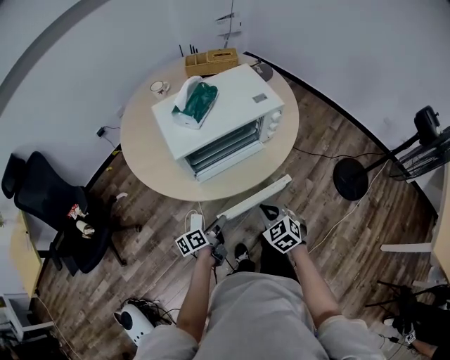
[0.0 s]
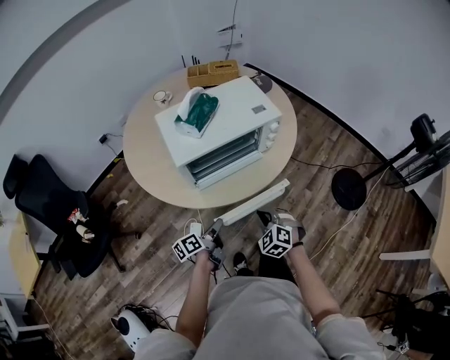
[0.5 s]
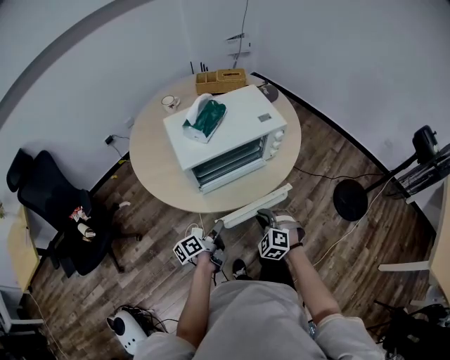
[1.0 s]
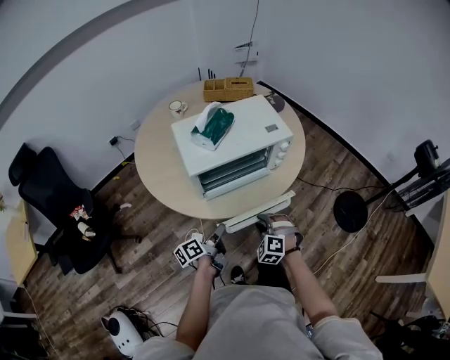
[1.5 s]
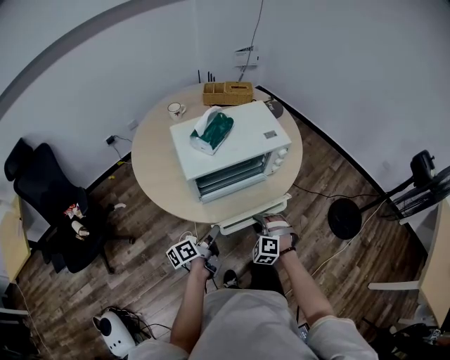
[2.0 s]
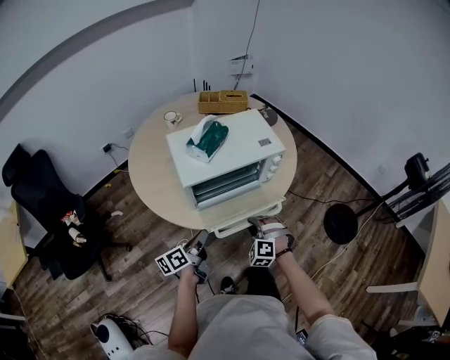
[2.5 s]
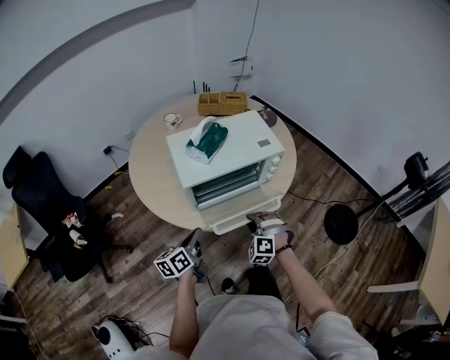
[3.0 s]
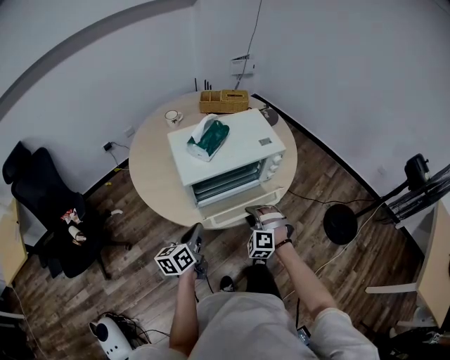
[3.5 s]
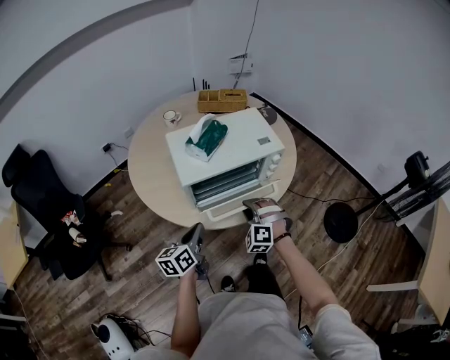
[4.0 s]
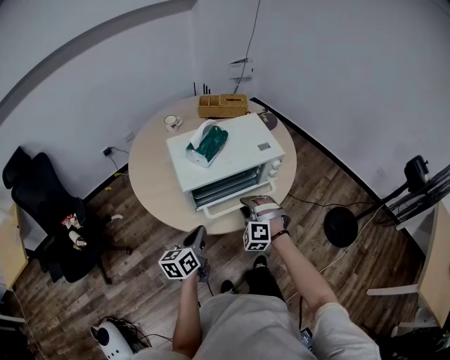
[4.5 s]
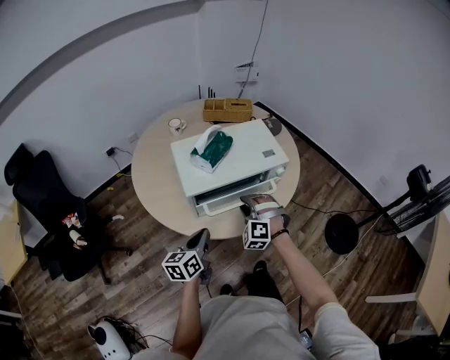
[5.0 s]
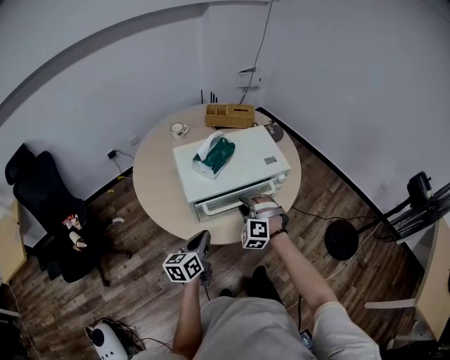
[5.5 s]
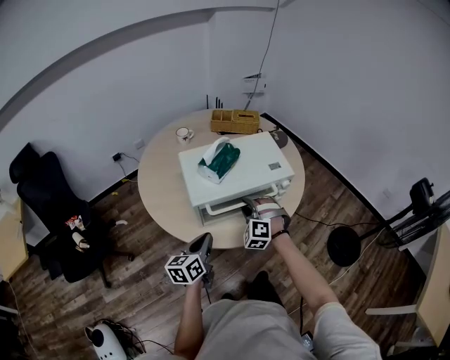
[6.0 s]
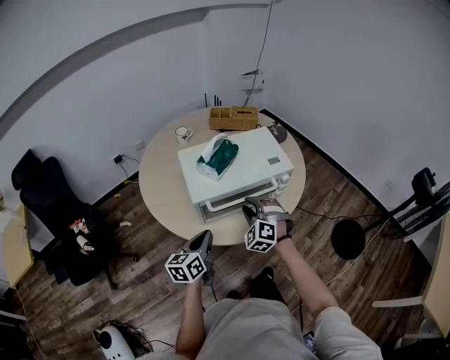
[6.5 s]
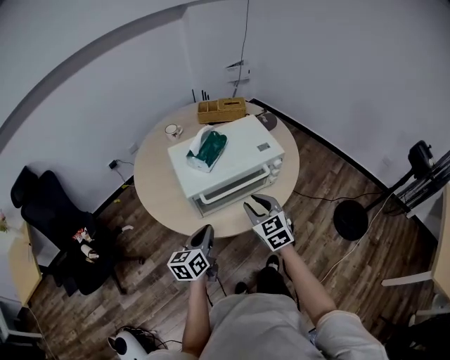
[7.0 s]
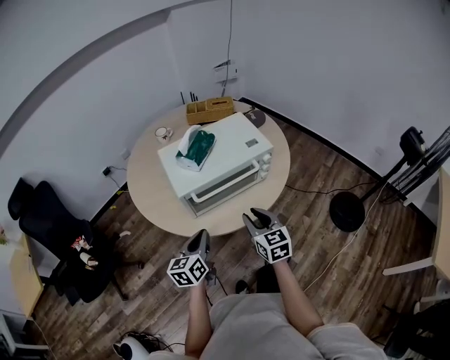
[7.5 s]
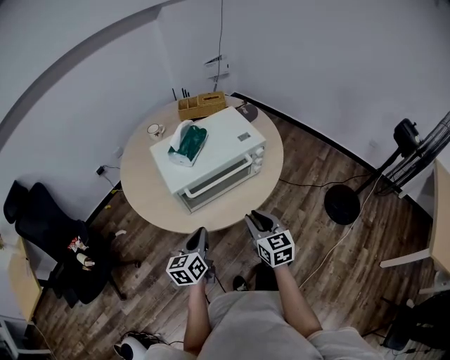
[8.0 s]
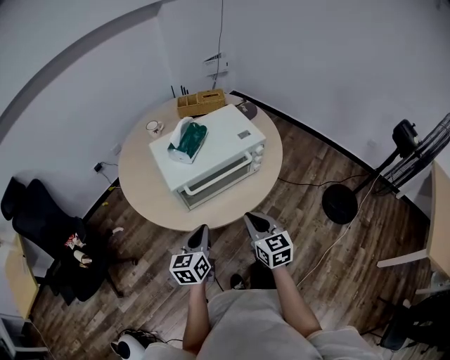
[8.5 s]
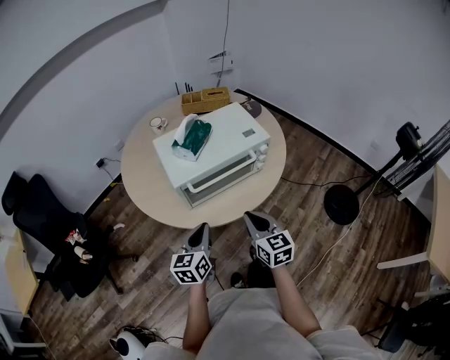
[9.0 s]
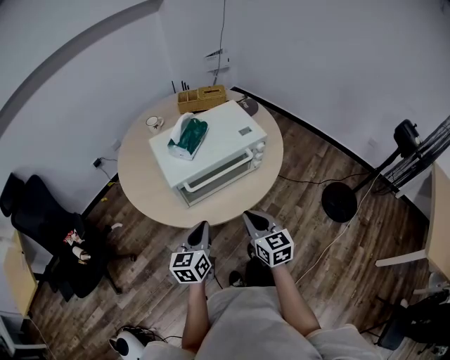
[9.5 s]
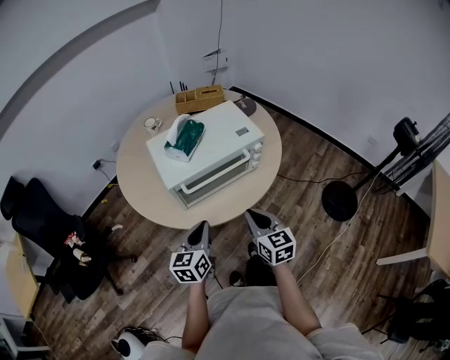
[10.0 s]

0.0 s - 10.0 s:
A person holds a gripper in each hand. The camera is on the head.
0.0 s - 2.0 s: The left gripper travels upward by approximately 10 cm; the right gripper ends up roughly 5 cm from where it was, rolls counterclockwise, seen from behind, by some 40 degrees, and opens its fingers.
2.0 s - 4.0 s: The left gripper goes roughly 5 cm upward, rotates approximately 30 degrees, and closes; the right gripper is displaced upward and forward by approximately 10 cm.
4.0 s - 6.0 s: The right gripper heads forward, covering roughly 10 cm.
6.0 s - 8.0 s: The right gripper heads backward and to the right, covering approximately 15 cm, and rotates around the line of its fingers by some 80 degrees, clockwise from behind. The left gripper shifts by some 5 cm.
8.0 s - 10.0 s: There are only small adjustments of the grippers.

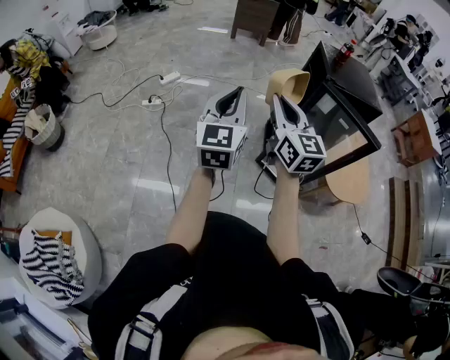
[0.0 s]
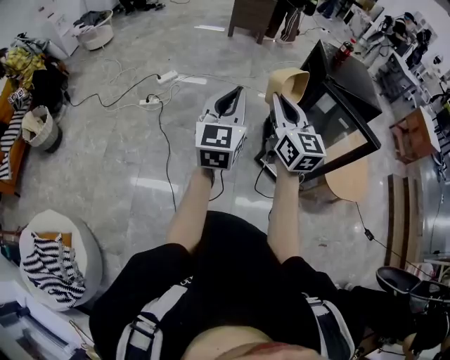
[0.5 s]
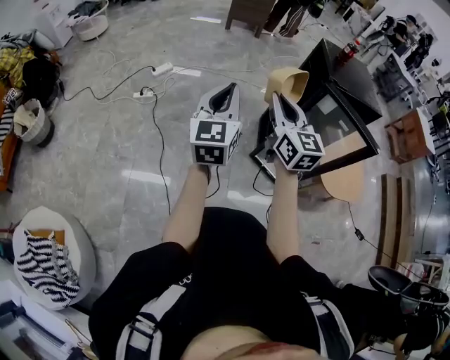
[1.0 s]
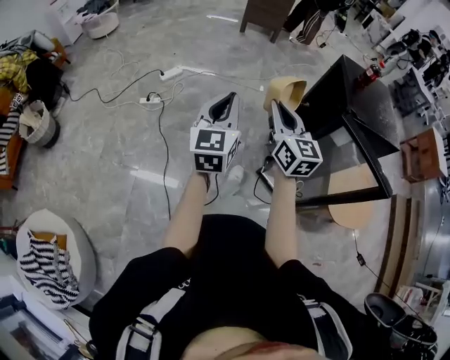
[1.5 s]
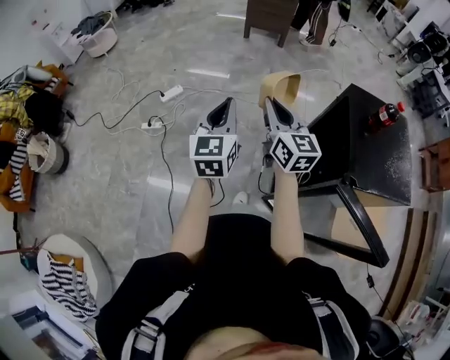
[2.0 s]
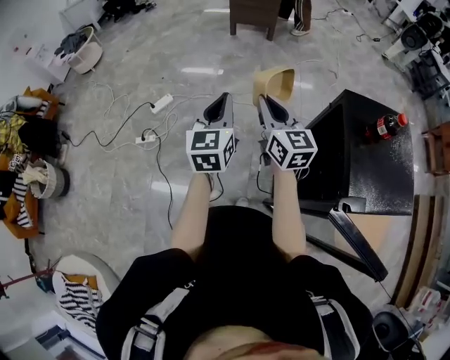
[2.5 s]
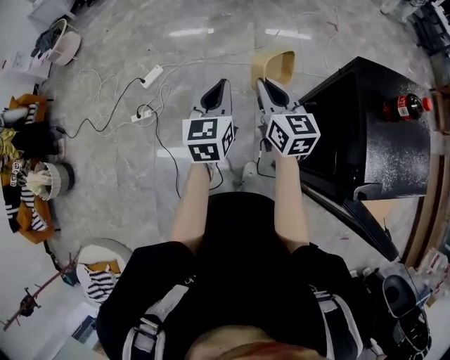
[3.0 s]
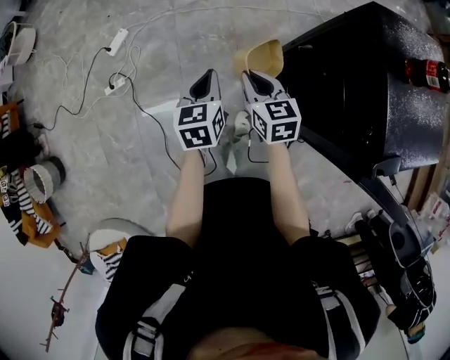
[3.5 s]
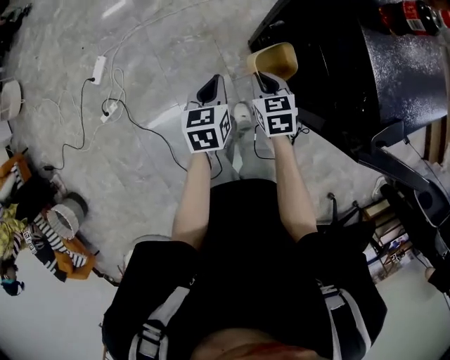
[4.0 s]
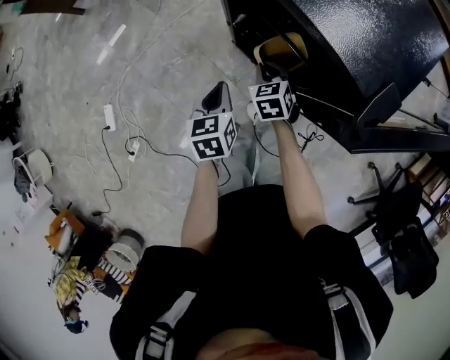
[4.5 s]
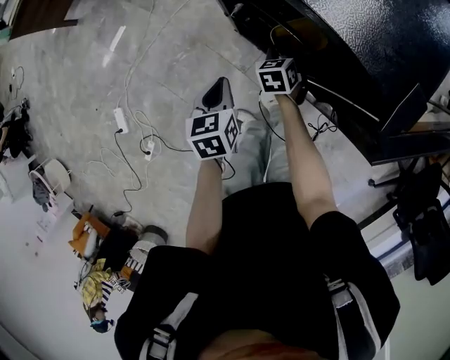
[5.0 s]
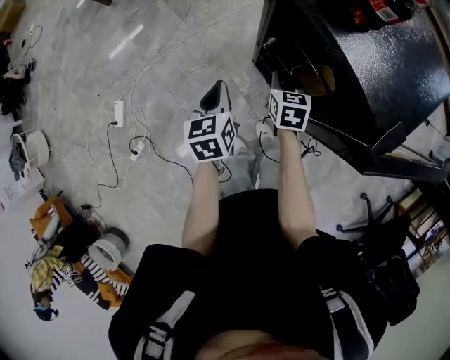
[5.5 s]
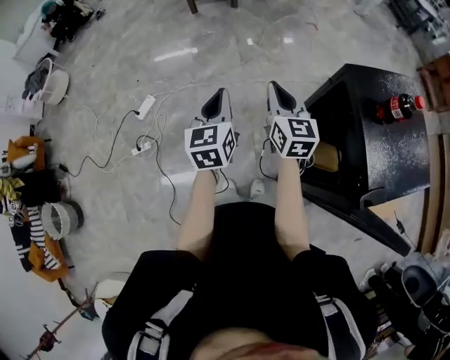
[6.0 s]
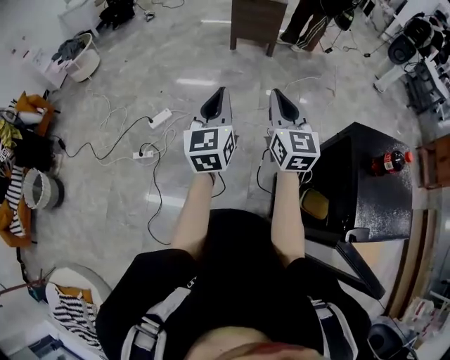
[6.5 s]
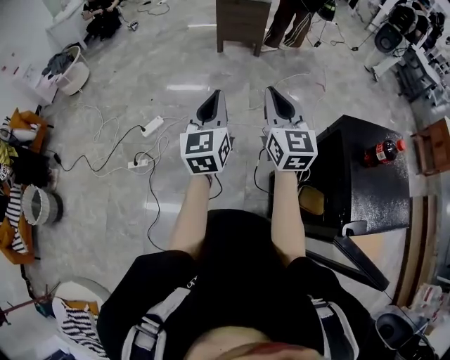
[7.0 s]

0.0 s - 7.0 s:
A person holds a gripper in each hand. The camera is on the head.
0.0 s - 2.0 s: The pair of grippers is taken forward, approximately 50 cm.
2.0 s - 3.5 s: The left gripper moves downward and forward, about 25 cm, and rotates approximately 30 degrees. The right gripper goes approximately 25 cm downward, and tilts its fingers approximately 30 degrees downward.
3.5 s - 5.0 s: The left gripper changes place by about 20 cm, and rotates about 40 degrees, while the right gripper moves roughly 30 cm, and turns by about 50 degrees.
5.0 s - 7.0 s: Both grippers travel together upward, approximately 40 cm. The left gripper points its fingers roughly 50 degrees further upward; the right gripper tips its fingers upward by about 60 degrees.

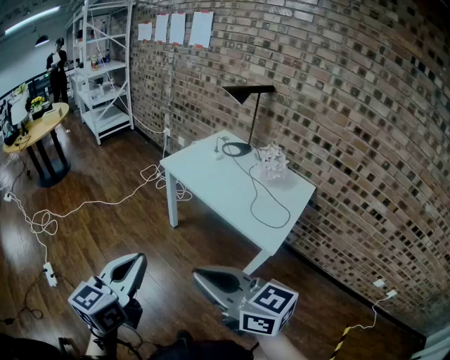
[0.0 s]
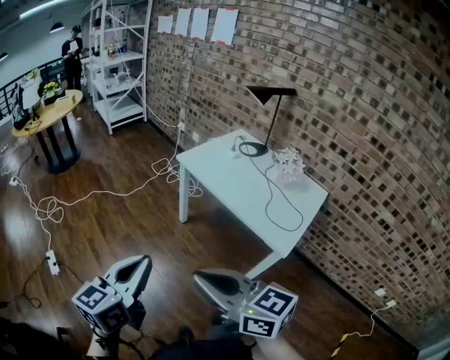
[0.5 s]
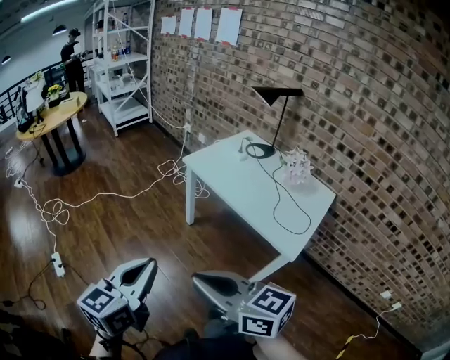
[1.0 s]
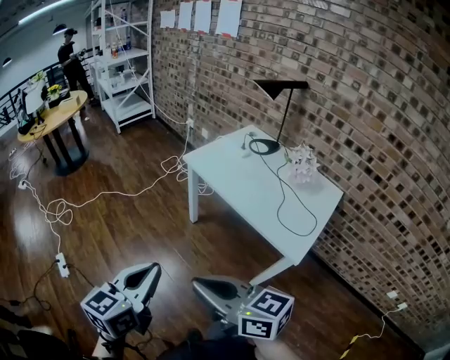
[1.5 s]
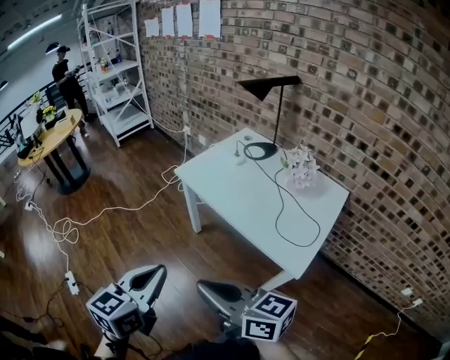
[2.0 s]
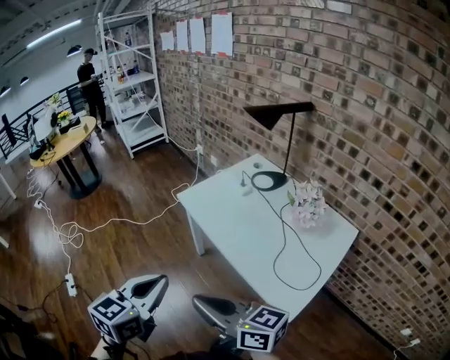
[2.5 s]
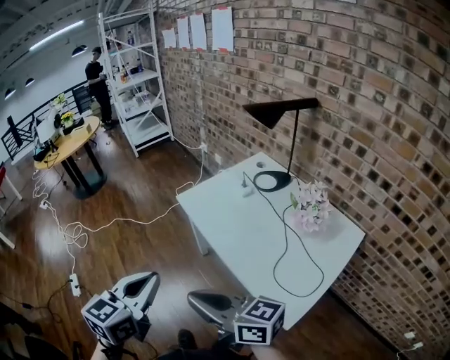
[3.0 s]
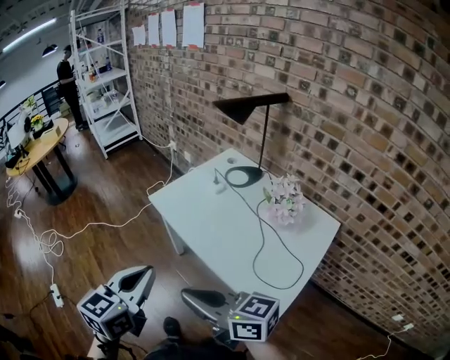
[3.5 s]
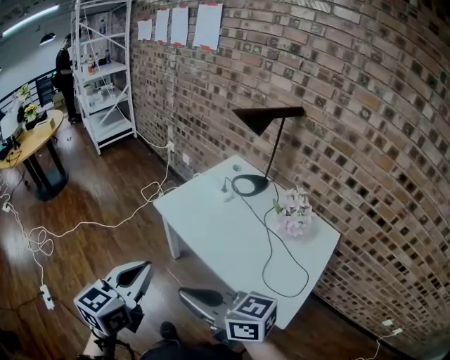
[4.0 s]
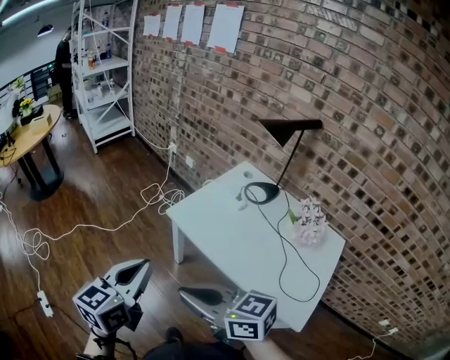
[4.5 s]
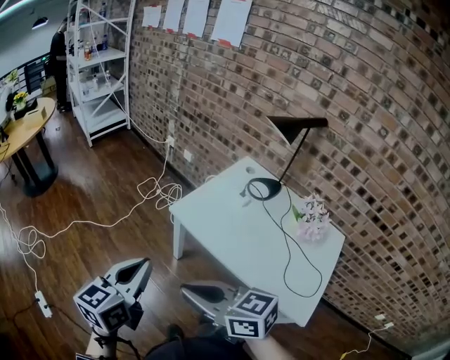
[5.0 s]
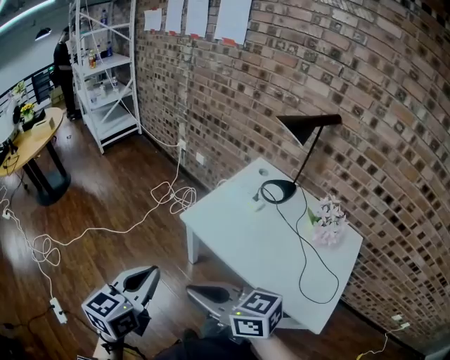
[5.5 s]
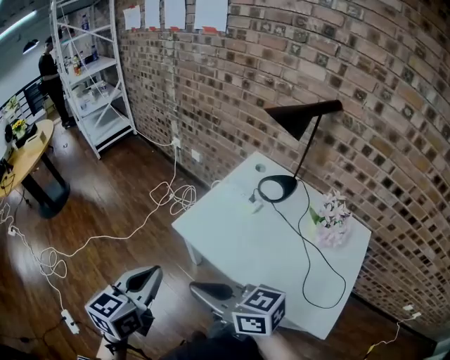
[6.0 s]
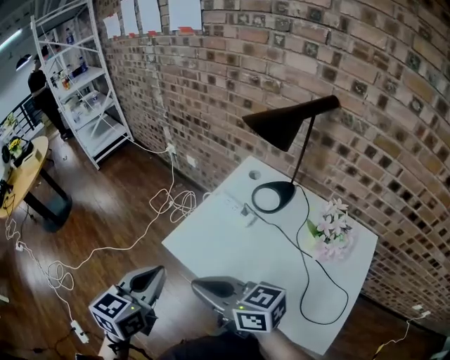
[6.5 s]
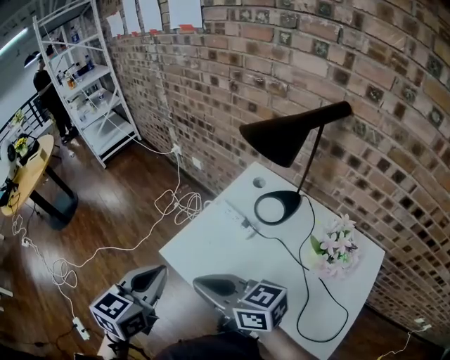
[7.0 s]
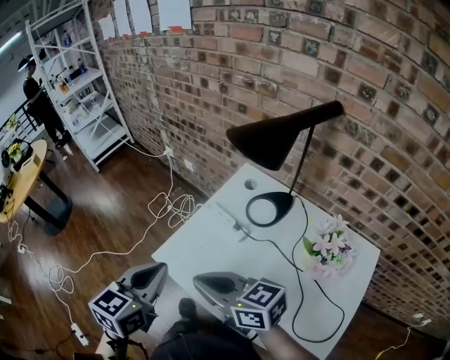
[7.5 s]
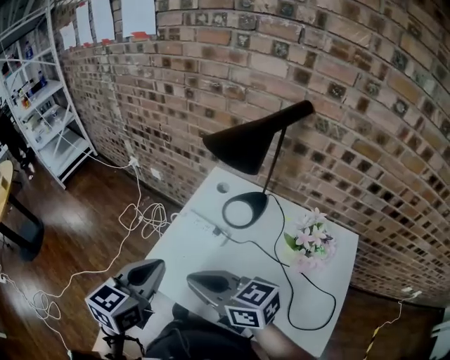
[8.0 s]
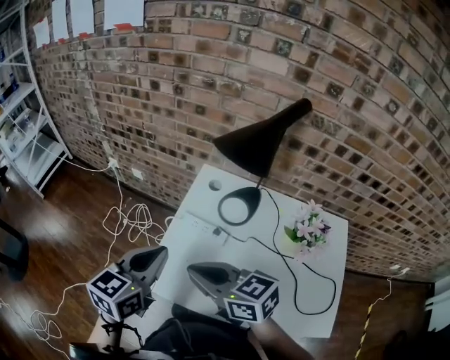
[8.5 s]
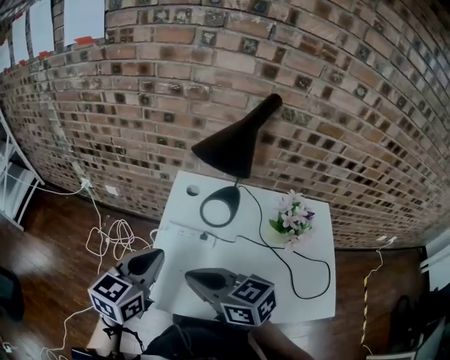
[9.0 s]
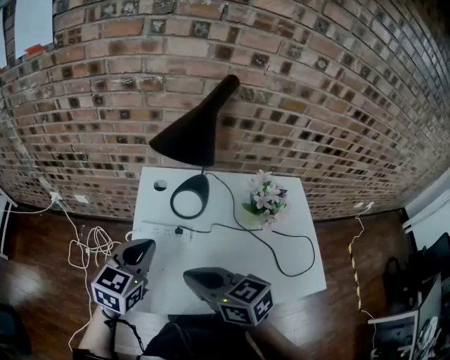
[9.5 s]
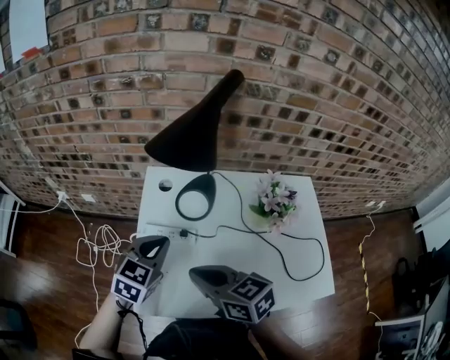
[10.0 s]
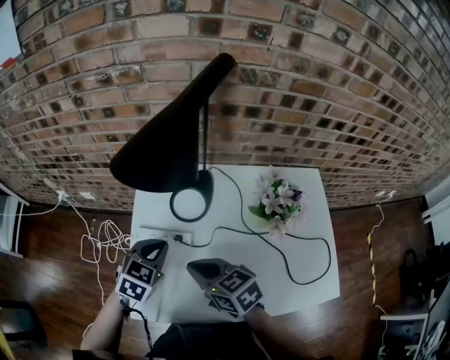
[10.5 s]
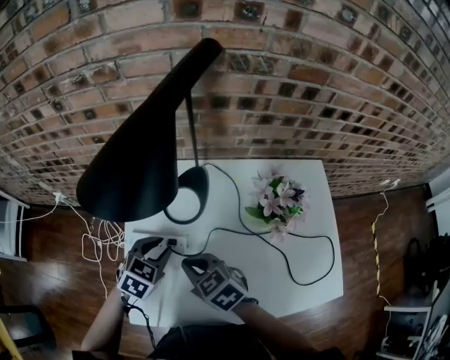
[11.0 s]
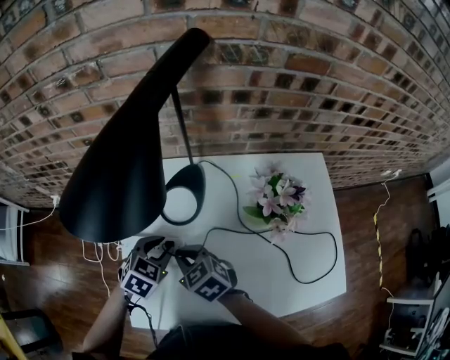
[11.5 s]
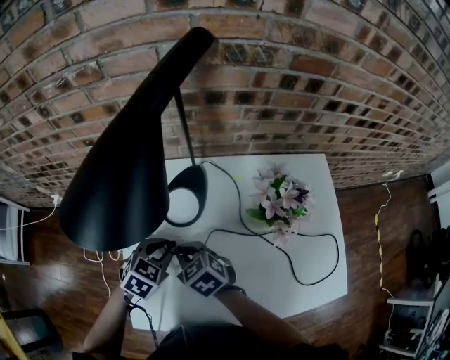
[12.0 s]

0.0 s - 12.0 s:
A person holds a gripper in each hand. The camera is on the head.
0.0 s - 2.0 s: The right gripper moves forward and downward, about 10 cm; the left gripper is displaced forward and to the right by about 10 cm.
2.0 s - 4.0 s: The grippers both shift forward by some 20 cm.
4.0 s - 6.0 s: Both grippers move forward, about 20 cm.
6.0 s - 8.0 s: The right gripper moves forward and to the right, some 20 cm. The left gripper goes about 25 cm to the right and forward.
8.0 s - 10.0 s: The left gripper ends up roughly 20 cm from where it was, and swivels roughly 40 degrees; the right gripper moves some 10 cm, and swivels about 40 degrees.
10.0 s - 12.0 s: The left gripper goes about 15 cm downward, and turns by about 20 degrees, while the right gripper moves downward and forward, some 20 cm, and changes its angle by some 30 degrees.
